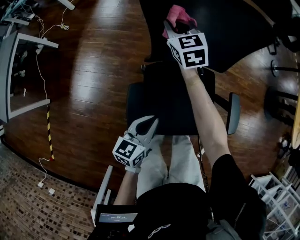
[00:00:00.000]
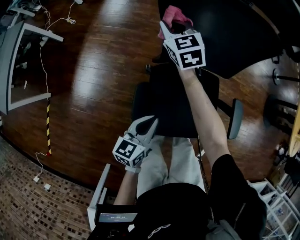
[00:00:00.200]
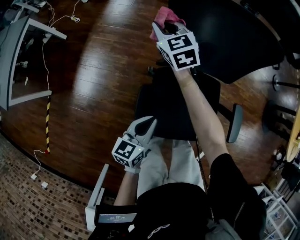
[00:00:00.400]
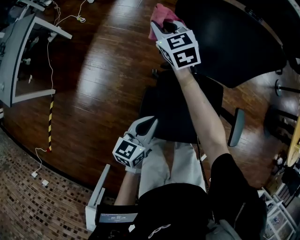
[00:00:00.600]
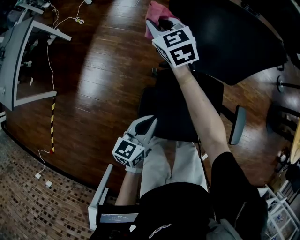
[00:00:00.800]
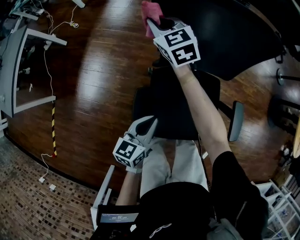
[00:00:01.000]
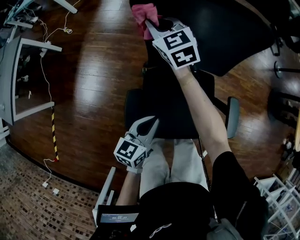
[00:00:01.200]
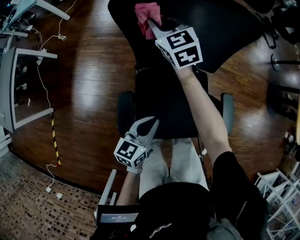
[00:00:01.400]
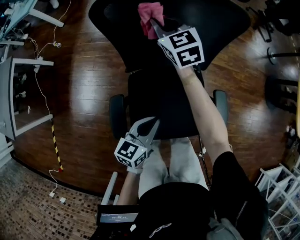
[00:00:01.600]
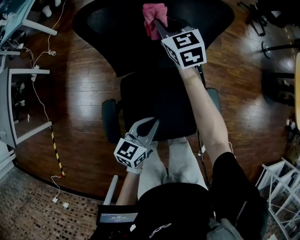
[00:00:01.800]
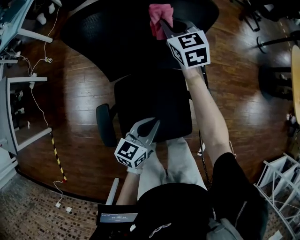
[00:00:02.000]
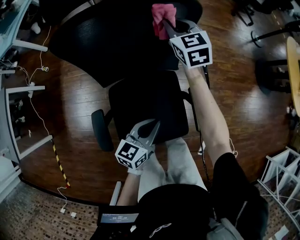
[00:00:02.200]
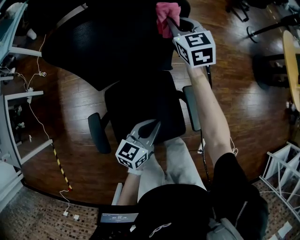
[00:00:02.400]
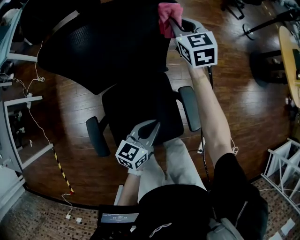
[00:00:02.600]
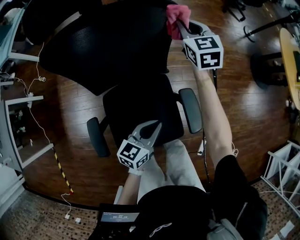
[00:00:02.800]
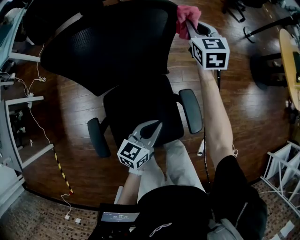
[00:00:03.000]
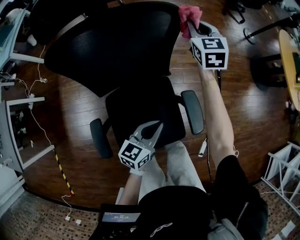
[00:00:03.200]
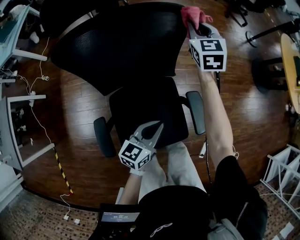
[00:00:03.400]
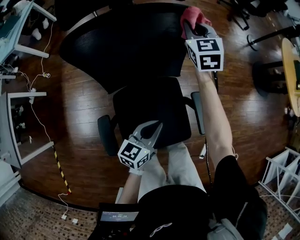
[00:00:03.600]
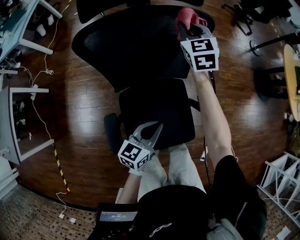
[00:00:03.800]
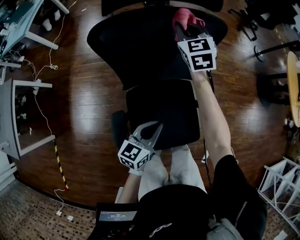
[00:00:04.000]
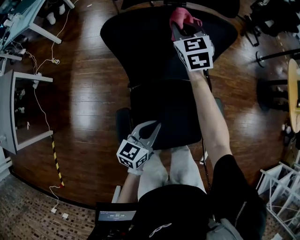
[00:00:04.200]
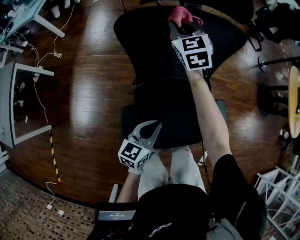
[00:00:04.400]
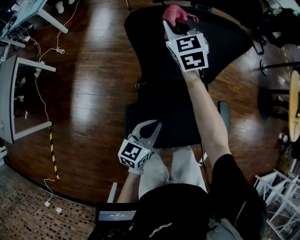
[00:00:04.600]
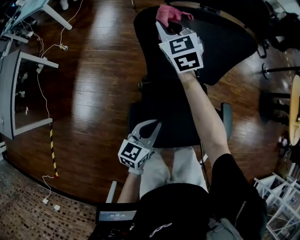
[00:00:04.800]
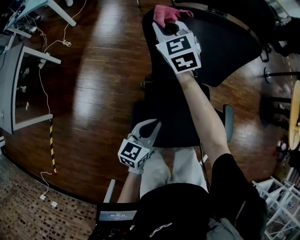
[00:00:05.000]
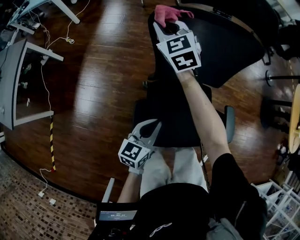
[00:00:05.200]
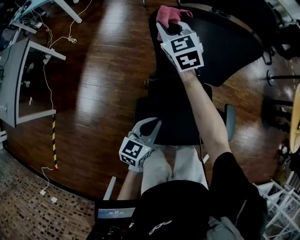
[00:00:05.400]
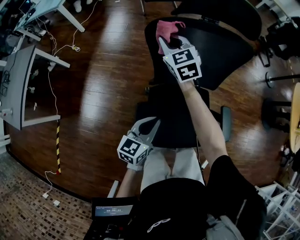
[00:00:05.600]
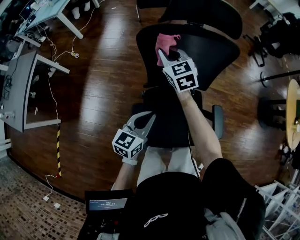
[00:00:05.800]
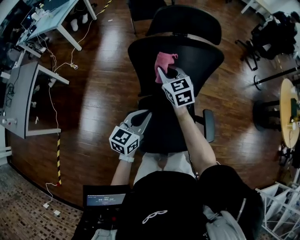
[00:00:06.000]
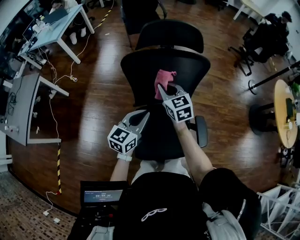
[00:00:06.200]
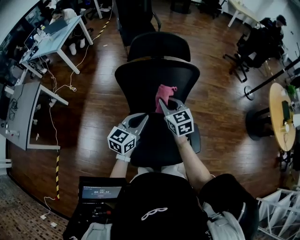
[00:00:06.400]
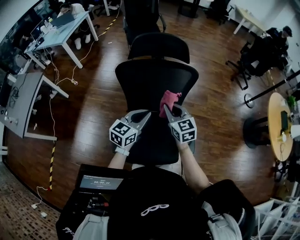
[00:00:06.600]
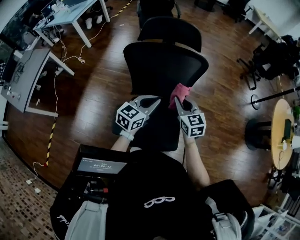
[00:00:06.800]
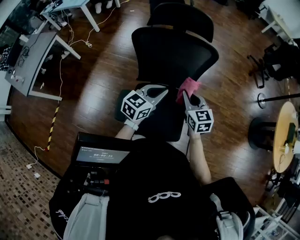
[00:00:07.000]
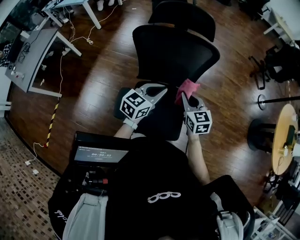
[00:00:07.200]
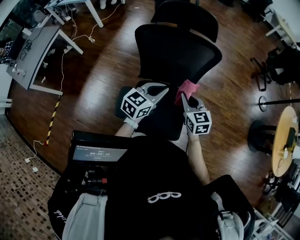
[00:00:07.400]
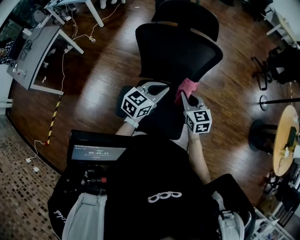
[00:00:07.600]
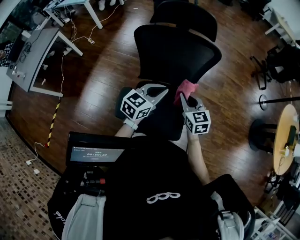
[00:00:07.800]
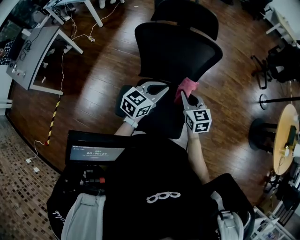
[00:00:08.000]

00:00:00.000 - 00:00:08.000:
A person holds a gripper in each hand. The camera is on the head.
00:00:00.000 - 00:00:01.600: The grippers both shift to the right by approximately 10 cm.
00:00:01.600 - 00:00:03.200: The right gripper travels to the right by approximately 35 cm, and changes its angle by some 30 degrees. Meanwhile the left gripper travels to the right and forward by roughly 15 cm.
00:00:03.200 - 00:00:04.800: The right gripper goes roughly 40 cm to the left, and rotates about 30 degrees. The left gripper is displaced to the left by approximately 25 cm.
00:00:04.800 - 00:00:06.400: The left gripper is displaced upward and to the right by about 20 cm. The right gripper travels to the right and backward by approximately 25 cm, and swivels approximately 20 degrees.
00:00:06.400 - 00:00:08.000: The right gripper shifts about 10 cm backward and to the right, while the left gripper shifts by about 5 cm.

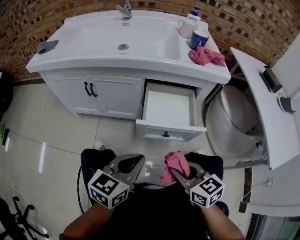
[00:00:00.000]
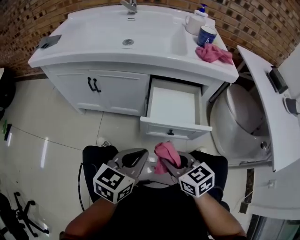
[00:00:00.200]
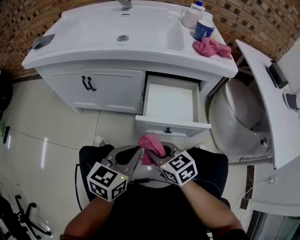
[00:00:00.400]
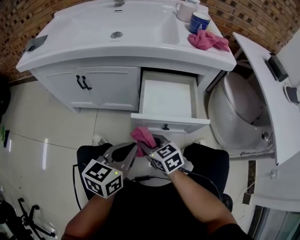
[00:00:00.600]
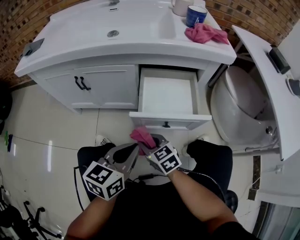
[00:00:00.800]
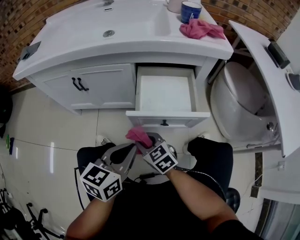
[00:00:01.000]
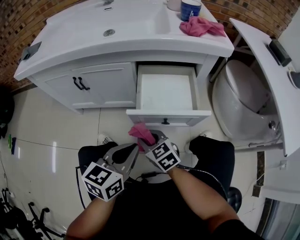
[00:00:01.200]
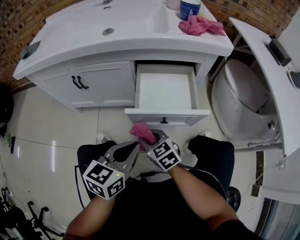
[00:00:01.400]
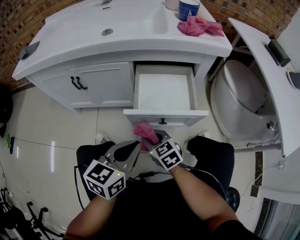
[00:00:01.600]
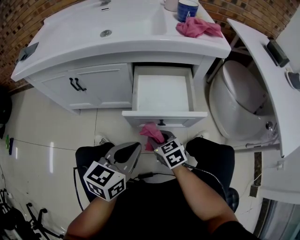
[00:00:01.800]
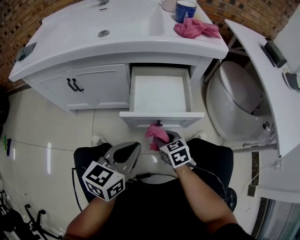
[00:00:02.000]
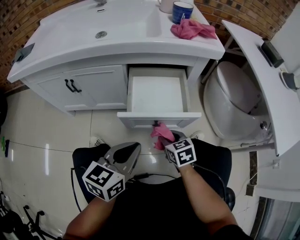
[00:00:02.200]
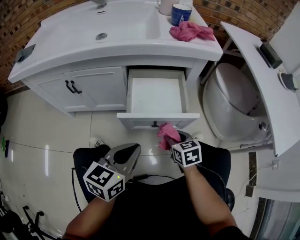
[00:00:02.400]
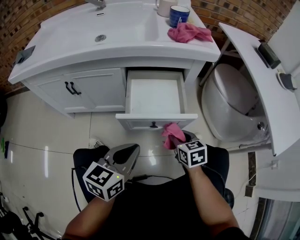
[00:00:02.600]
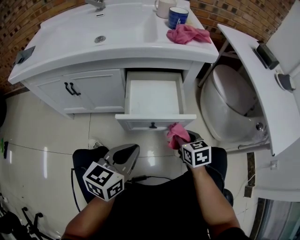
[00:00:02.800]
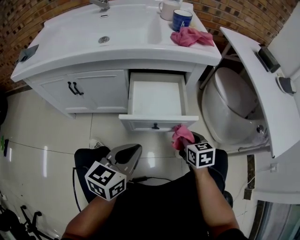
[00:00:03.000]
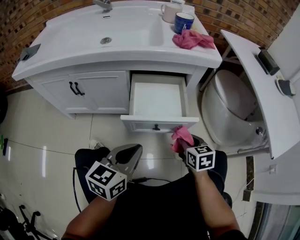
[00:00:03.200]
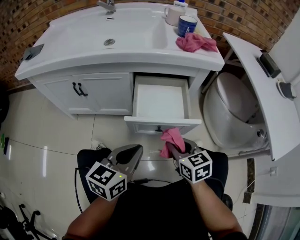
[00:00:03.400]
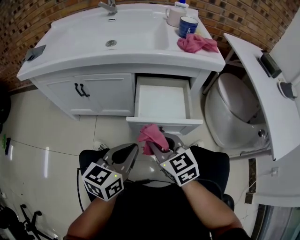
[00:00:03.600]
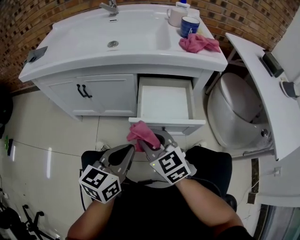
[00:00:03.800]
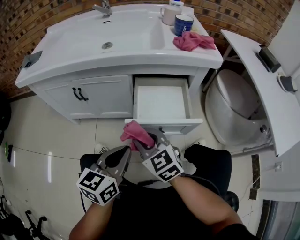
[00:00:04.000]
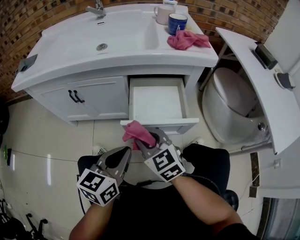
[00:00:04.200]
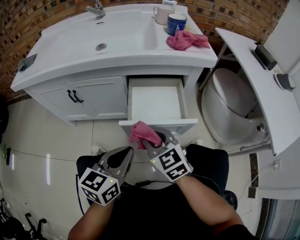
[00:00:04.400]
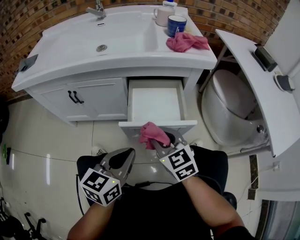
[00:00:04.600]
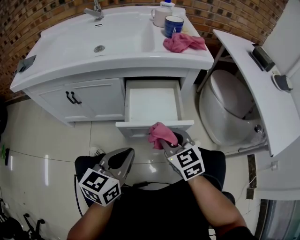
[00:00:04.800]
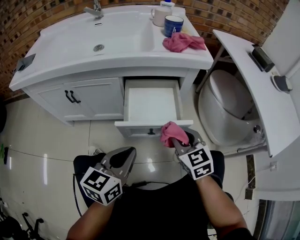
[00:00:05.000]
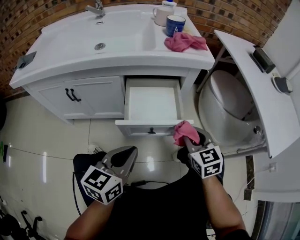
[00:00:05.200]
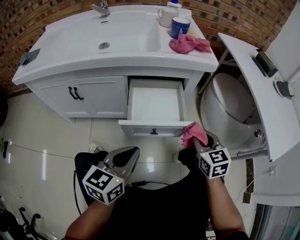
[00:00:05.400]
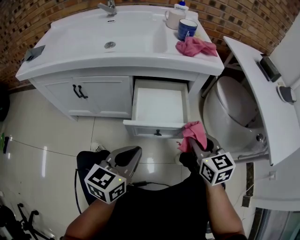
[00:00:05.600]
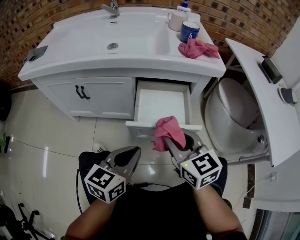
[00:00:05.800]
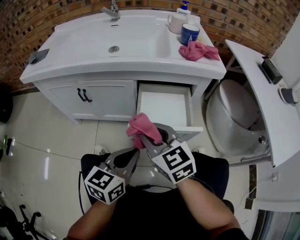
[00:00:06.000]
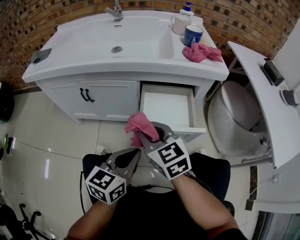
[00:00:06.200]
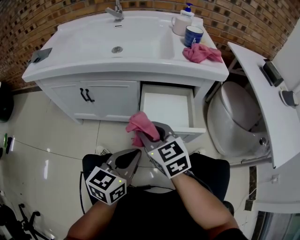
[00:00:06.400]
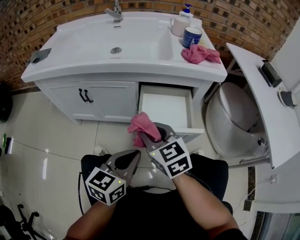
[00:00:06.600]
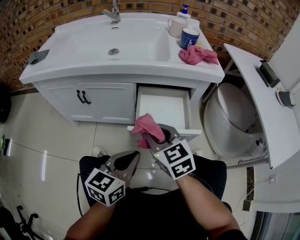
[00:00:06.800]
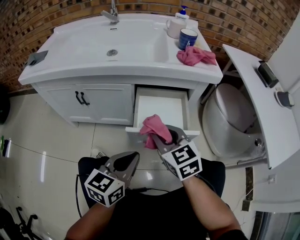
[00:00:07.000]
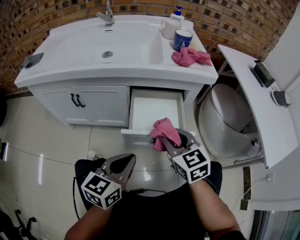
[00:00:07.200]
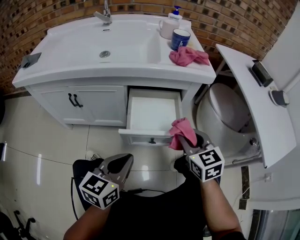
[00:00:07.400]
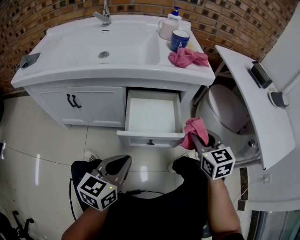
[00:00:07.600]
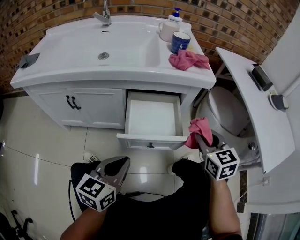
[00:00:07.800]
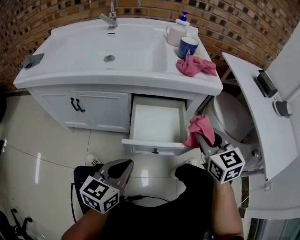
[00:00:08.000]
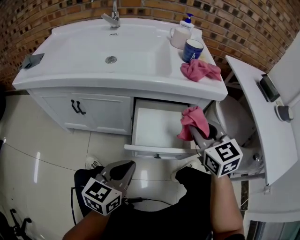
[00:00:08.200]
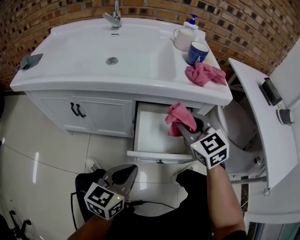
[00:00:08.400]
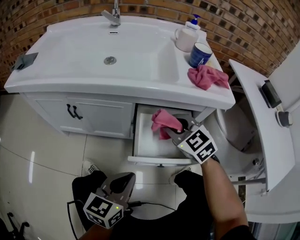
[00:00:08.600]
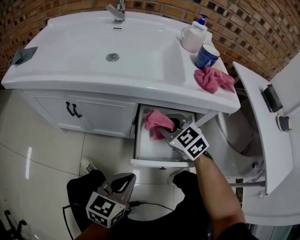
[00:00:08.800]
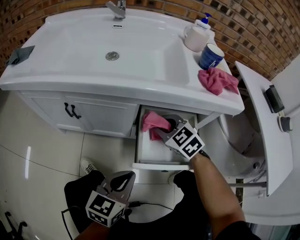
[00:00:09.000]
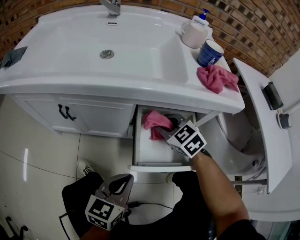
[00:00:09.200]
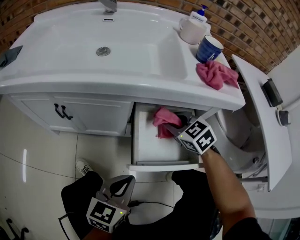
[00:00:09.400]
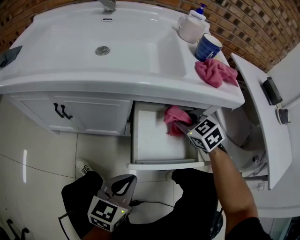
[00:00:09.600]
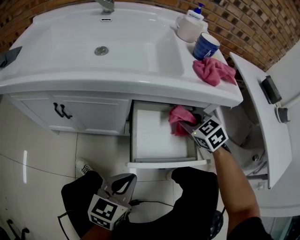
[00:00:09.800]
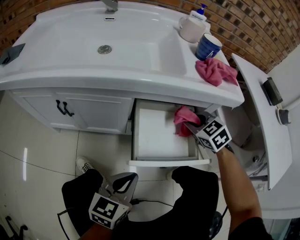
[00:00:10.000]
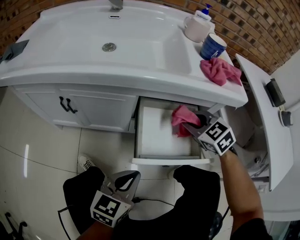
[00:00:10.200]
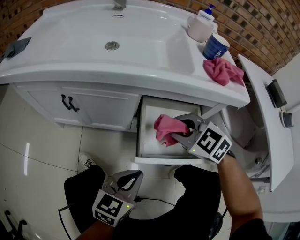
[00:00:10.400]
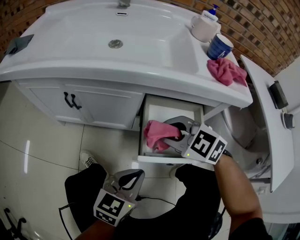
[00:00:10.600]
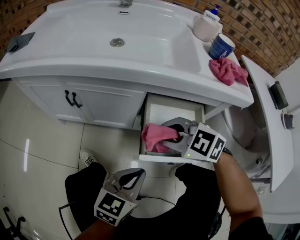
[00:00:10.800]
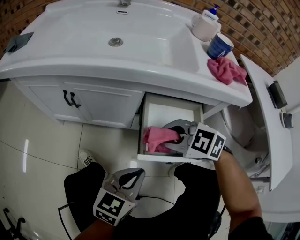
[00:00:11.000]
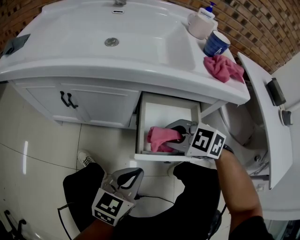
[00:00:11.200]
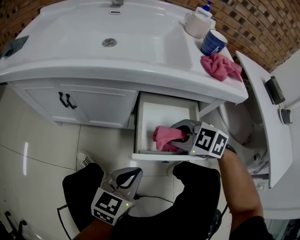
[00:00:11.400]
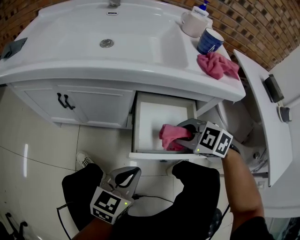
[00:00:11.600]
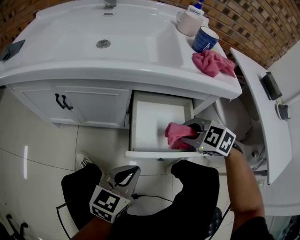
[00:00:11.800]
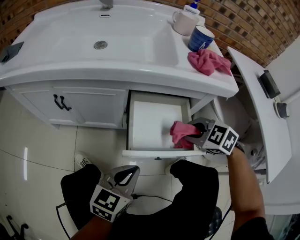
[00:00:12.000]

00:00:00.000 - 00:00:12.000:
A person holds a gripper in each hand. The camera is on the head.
00:00:00.000 - 00:00:01.600: The left gripper shifts by roughly 5 cm. The right gripper heads downward, forward and to the left, covering about 20 cm.
00:00:01.600 - 00:00:03.000: The right gripper moves to the right, roughly 20 cm, and swivels approximately 30 degrees.
00:00:03.000 - 00:00:04.400: The right gripper moves to the left and upward, some 20 cm, and swivels some 30 degrees.
00:00:04.400 - 00:00:06.000: The right gripper travels upward by about 5 cm, and goes to the right and returns, about 20 cm each way.
00:00:06.000 - 00:00:07.600: The right gripper moves to the right, about 25 cm, and rotates about 30 degrees.
00:00:07.600 - 00:00:09.000: The right gripper shifts some 25 cm to the left and forward, and rotates about 40 degrees. Meanwhile the left gripper heads forward and downward, covering some 10 cm.
00:00:09.000 - 00:00:10.400: The right gripper heads backward, covering approximately 5 cm, and goes to the right and returns, approximately 15 cm each way.
00:00:10.400 - 00:00:12.000: The right gripper goes some 10 cm to the right and backward.

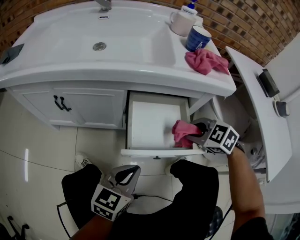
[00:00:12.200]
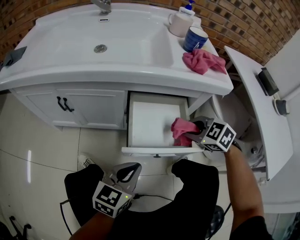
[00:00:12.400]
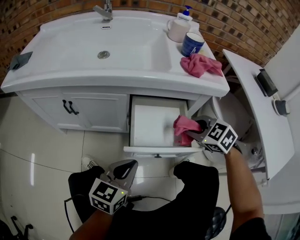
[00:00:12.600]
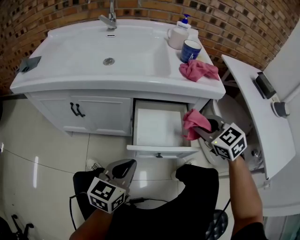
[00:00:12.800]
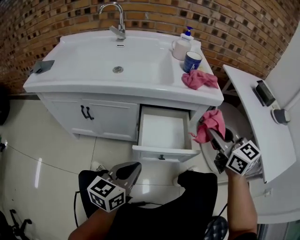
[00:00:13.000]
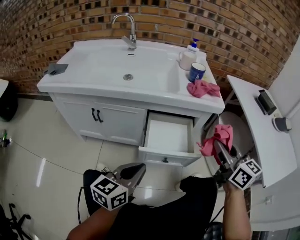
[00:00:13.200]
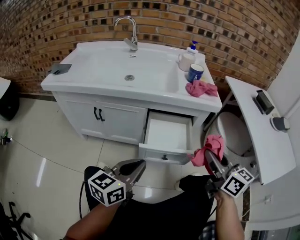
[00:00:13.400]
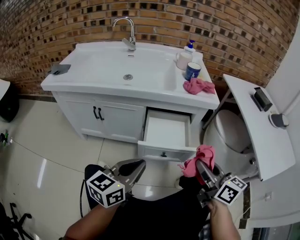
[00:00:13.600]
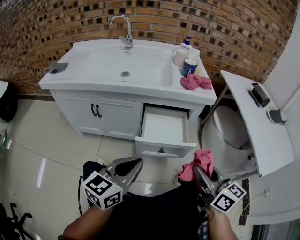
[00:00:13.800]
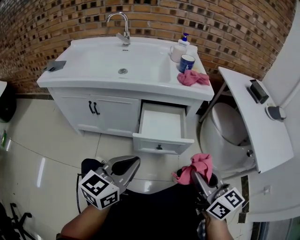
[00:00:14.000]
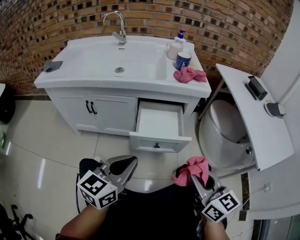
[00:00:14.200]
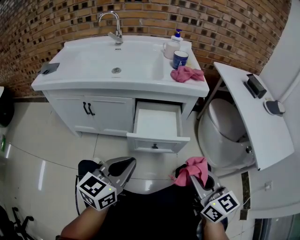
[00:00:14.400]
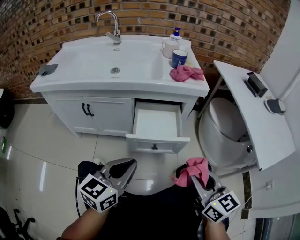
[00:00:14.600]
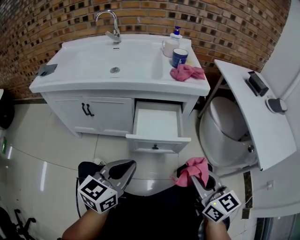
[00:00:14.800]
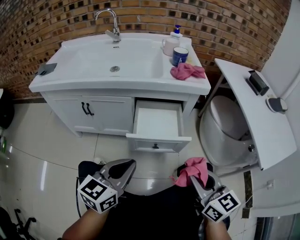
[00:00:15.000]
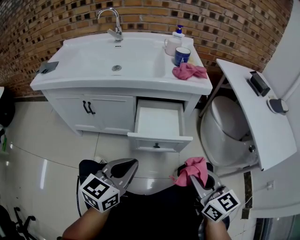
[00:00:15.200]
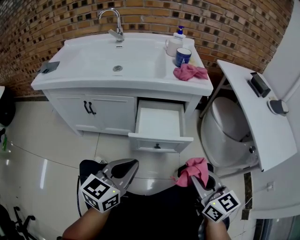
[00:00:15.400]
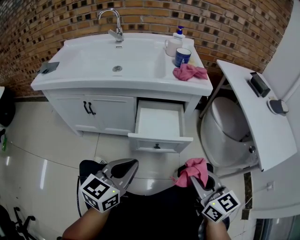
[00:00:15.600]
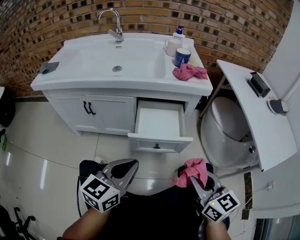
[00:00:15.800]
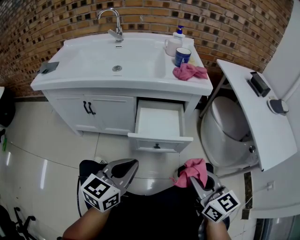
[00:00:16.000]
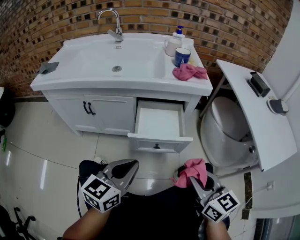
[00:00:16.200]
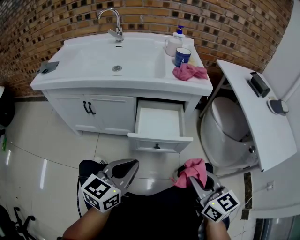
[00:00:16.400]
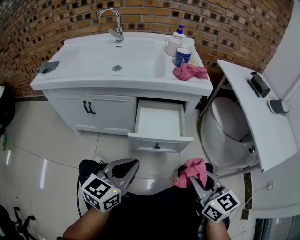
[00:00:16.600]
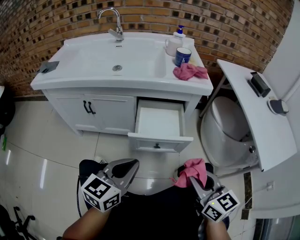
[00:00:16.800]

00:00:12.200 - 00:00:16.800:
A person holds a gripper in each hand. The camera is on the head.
00:00:12.200 - 00:00:13.800: The left gripper is displaced upward and backward by about 20 cm. Meanwhile the right gripper travels backward and upward by about 30 cm, and points its fingers approximately 50 degrees further upward.
00:00:13.800 - 00:00:15.200: The grippers stay close to where they were, moving slightly.
00:00:15.200 - 00:00:16.800: Both grippers stay about where they are.
